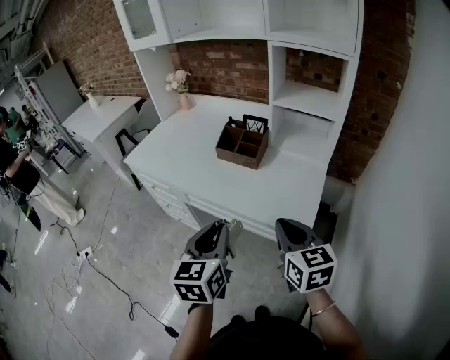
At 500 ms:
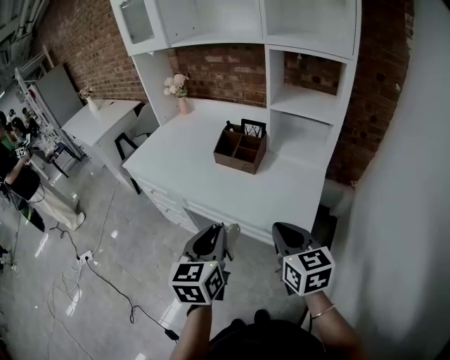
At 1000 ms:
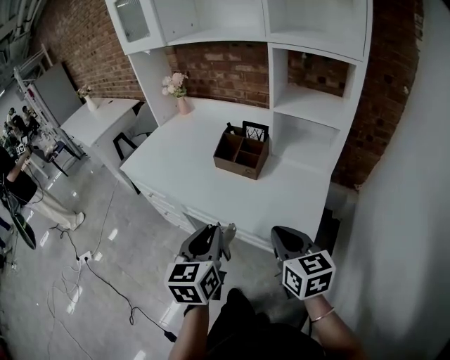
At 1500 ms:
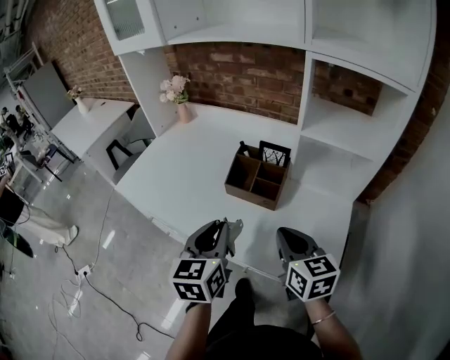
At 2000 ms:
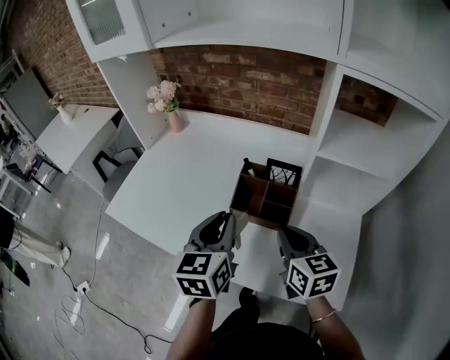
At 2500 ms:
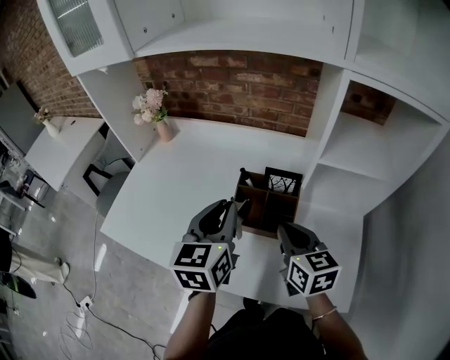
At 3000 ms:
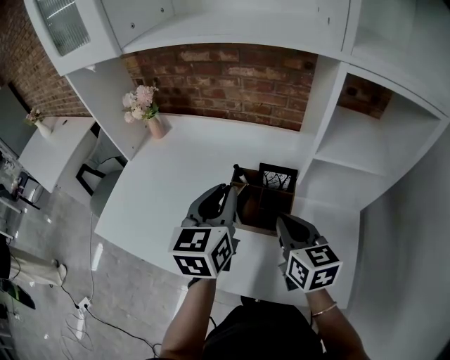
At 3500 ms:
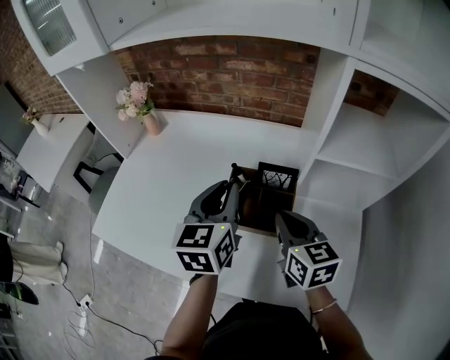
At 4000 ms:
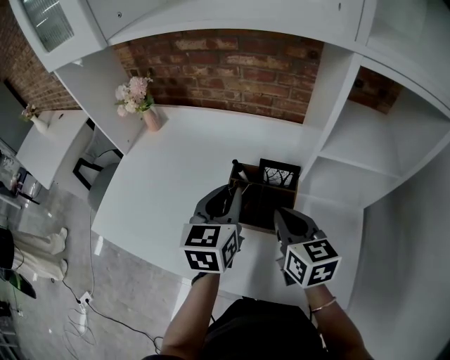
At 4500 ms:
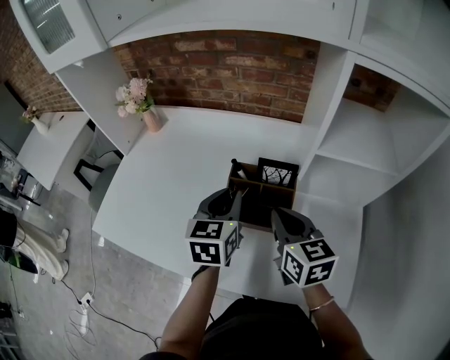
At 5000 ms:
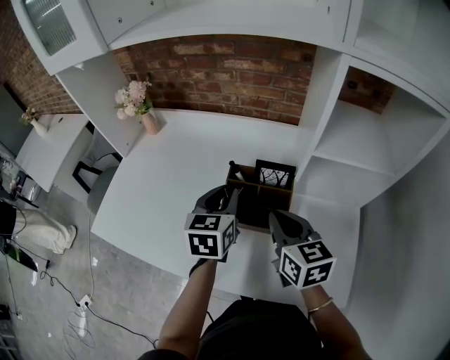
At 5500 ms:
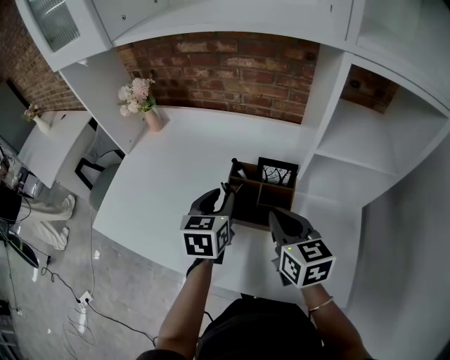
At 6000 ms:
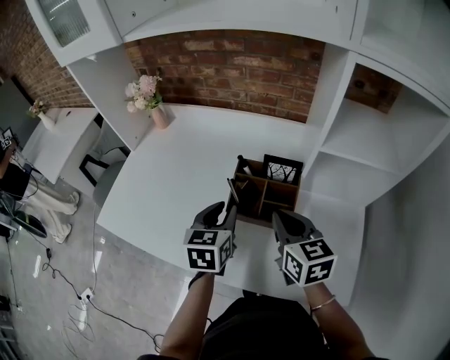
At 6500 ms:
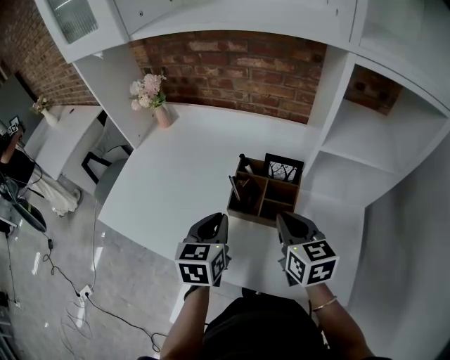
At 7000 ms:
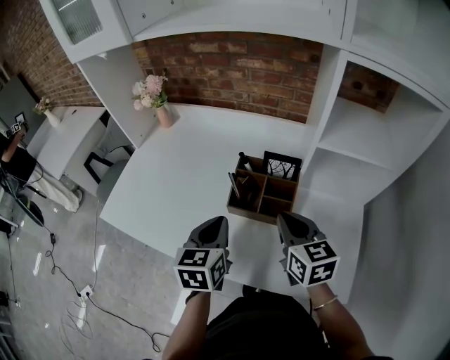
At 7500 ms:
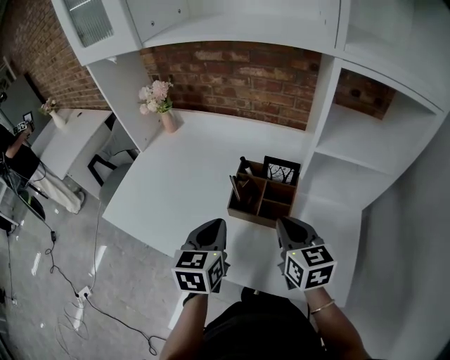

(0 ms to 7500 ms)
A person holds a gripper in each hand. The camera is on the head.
0 ms - 2000 ms: The two grippers go about 35 cm forward.
2000 ms - 4000 ms: The two grippers go roughly 10 cm forward.
4000 ms - 5500 ms: The left gripper is displaced downward by roughly 5 cm.
5500 ms - 7500 ms: The left gripper goes roughly 10 cm backward, and closes up.

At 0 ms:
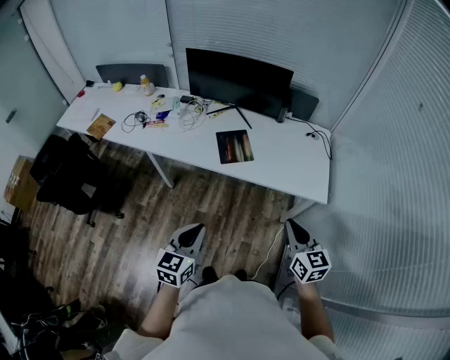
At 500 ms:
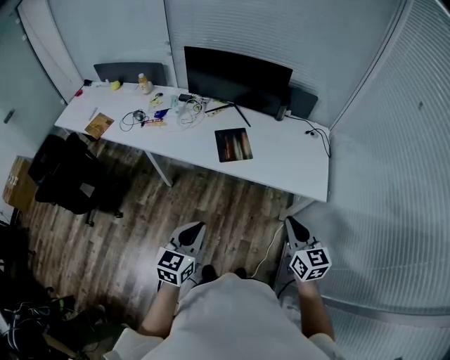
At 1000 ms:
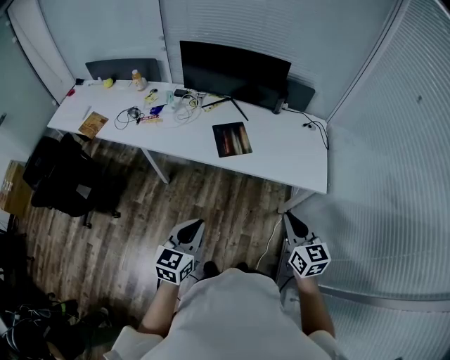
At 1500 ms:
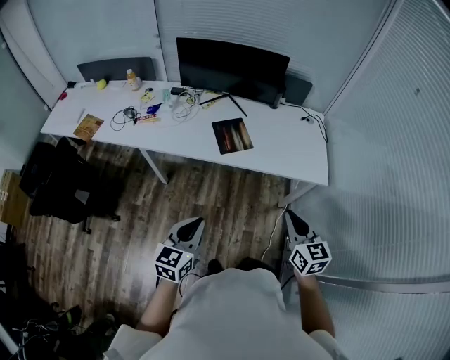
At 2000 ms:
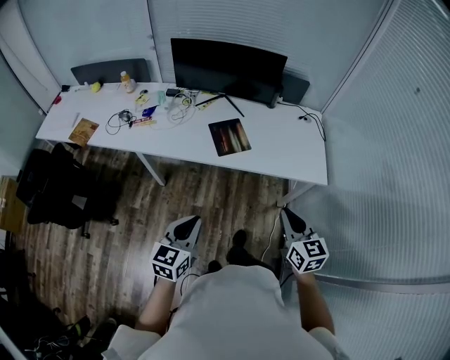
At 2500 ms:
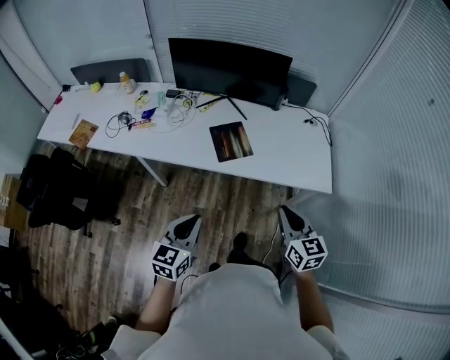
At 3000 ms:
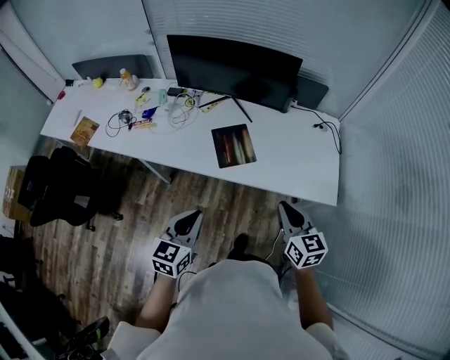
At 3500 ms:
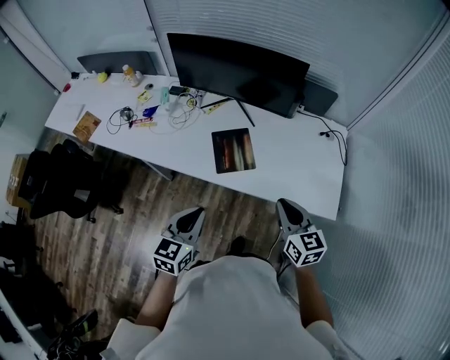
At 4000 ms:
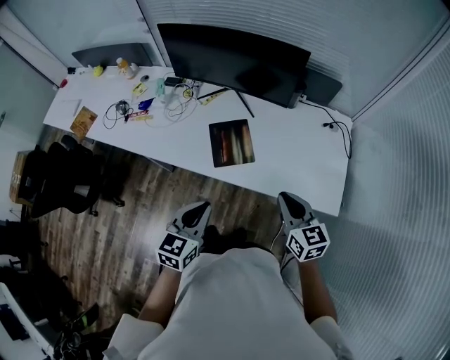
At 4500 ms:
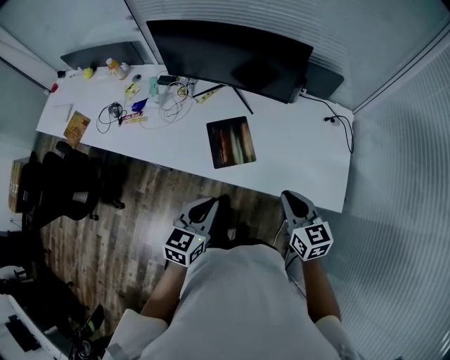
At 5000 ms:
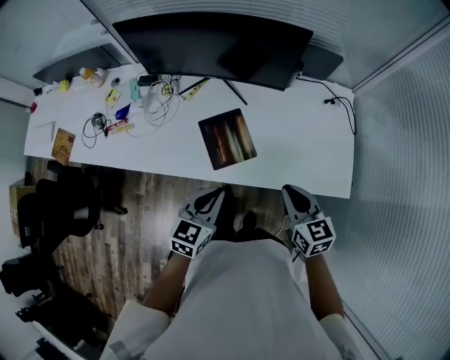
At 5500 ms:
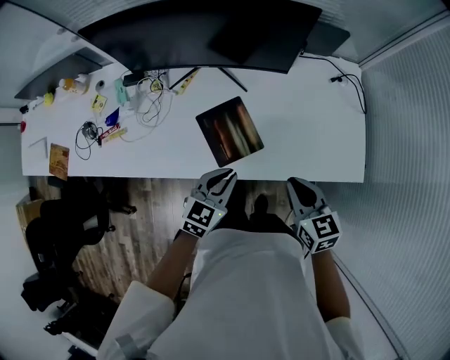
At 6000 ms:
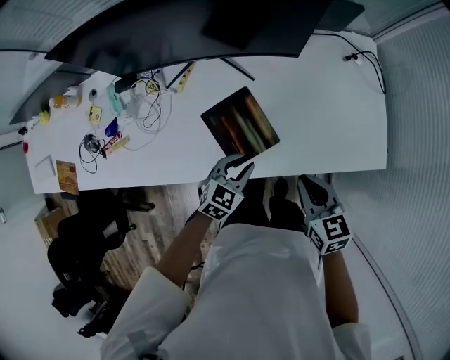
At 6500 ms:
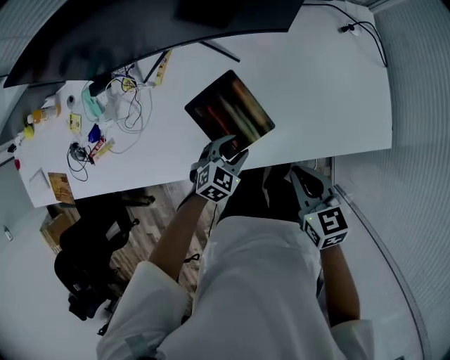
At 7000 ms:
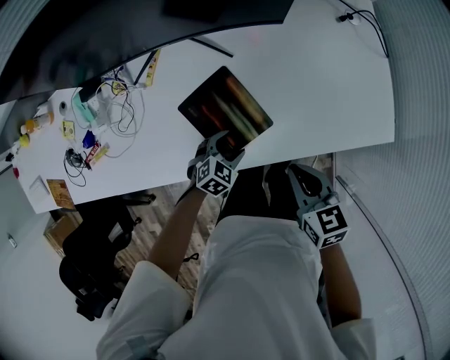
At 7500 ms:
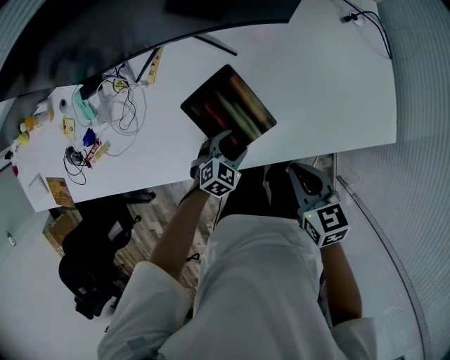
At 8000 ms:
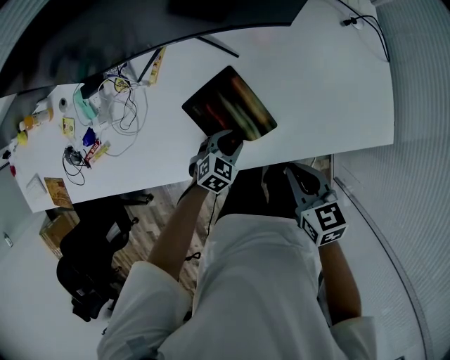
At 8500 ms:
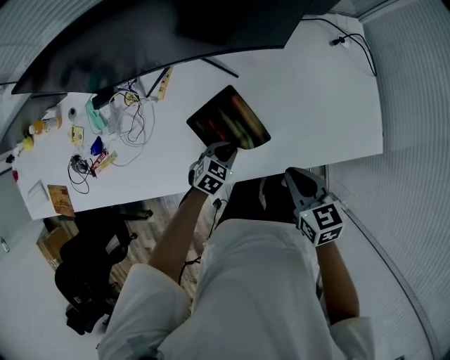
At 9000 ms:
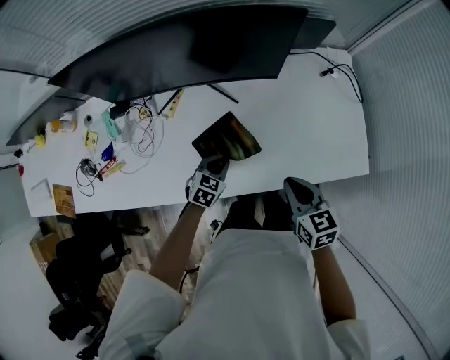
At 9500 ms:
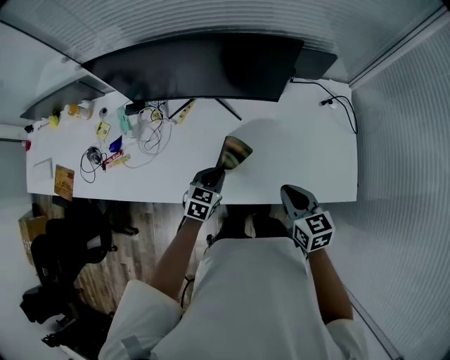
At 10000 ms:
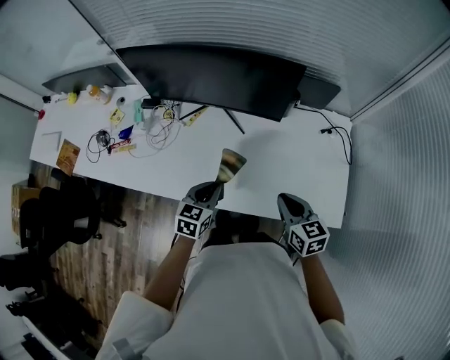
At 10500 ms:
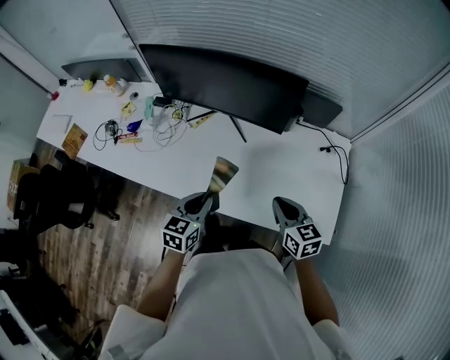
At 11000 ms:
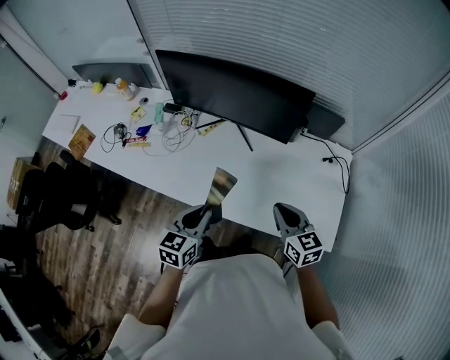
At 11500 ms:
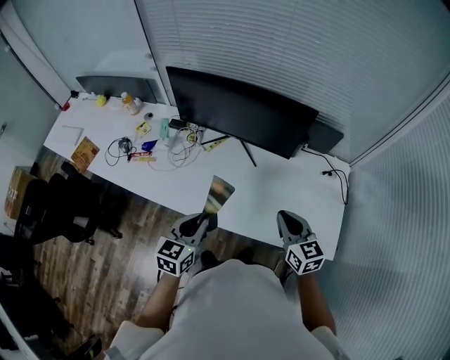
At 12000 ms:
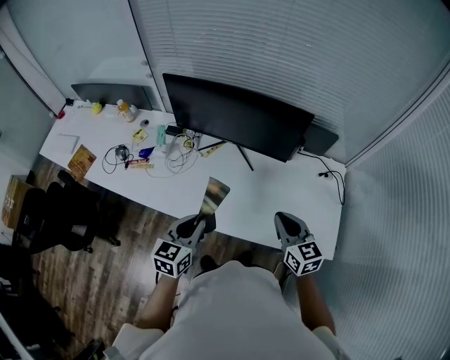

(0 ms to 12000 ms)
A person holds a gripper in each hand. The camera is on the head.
0 ms - 2000 ms: The grippers both shift to the left by approximately 5 cm.
2000 ms - 4000 ms: The right gripper is displaced forward by roughly 25 cm. The left gripper travels forward and to the right by about 25 cm.
4000 ms - 6000 ms: The right gripper moves downward, roughly 10 cm, and changes its angle by approximately 20 degrees; the left gripper goes some 20 cm downward, and changes its angle by about 40 degrees.
6000 ms - 8000 ms: The left gripper travels downward by approximately 15 cm, and opens and closes again; the right gripper goes about 5 cm downward.
8000 ms - 10000 ms: The left gripper shifts roughly 25 cm upward, changes its angle by approximately 50 degrees, and closes up, while the right gripper is displaced upward by roughly 10 cm, and swivels approximately 20 degrees.
10000 ms - 12000 ms: The right gripper goes about 10 cm upward and to the left, while the left gripper moves upward, to the left and backward, approximately 20 cm.

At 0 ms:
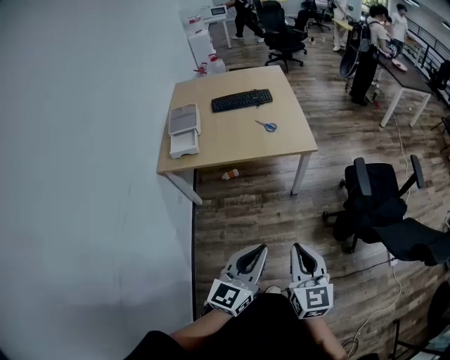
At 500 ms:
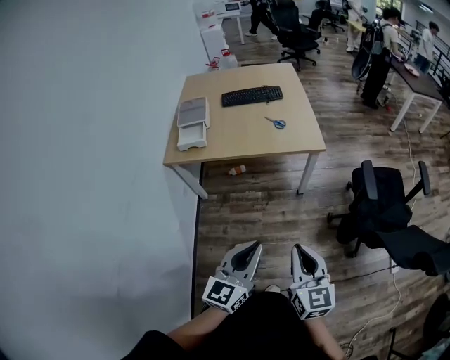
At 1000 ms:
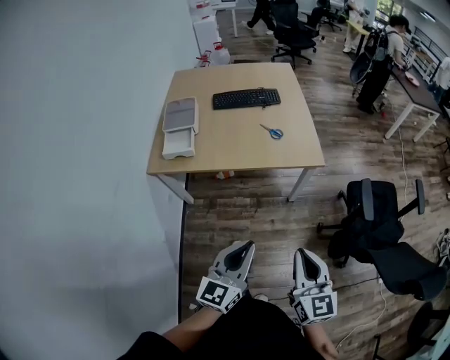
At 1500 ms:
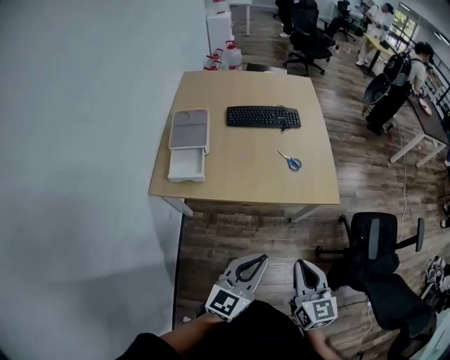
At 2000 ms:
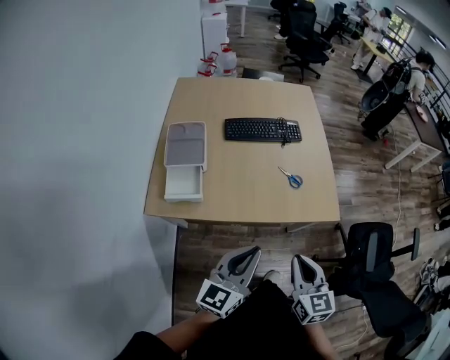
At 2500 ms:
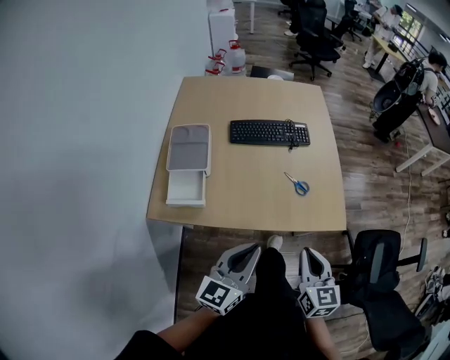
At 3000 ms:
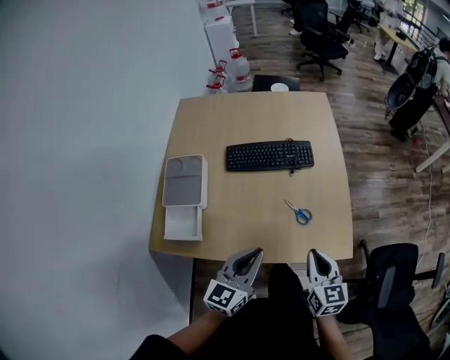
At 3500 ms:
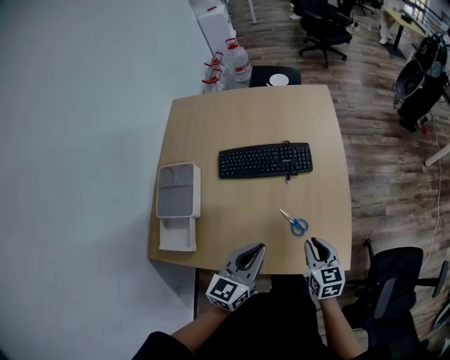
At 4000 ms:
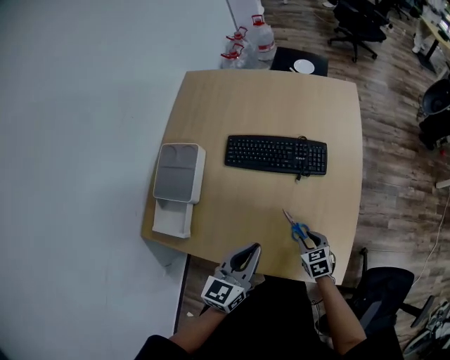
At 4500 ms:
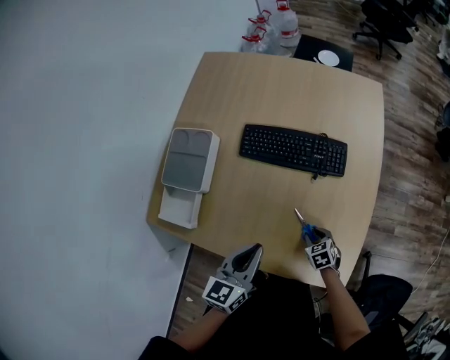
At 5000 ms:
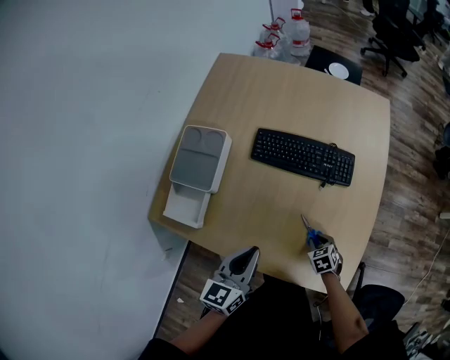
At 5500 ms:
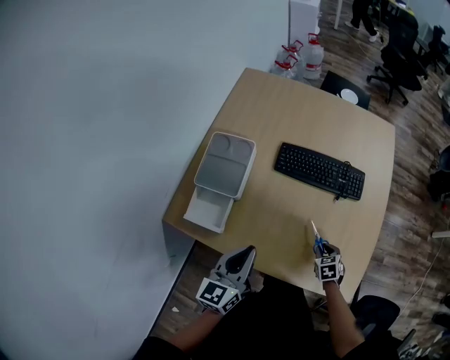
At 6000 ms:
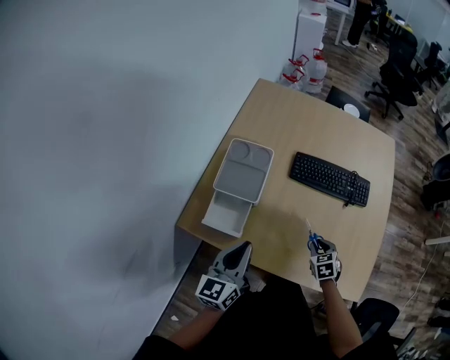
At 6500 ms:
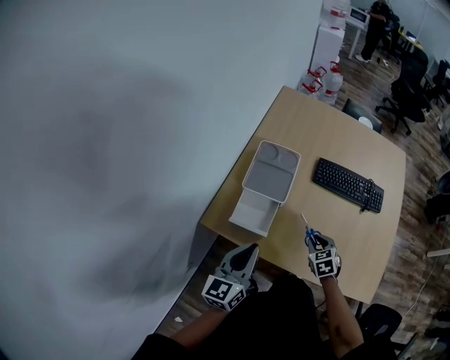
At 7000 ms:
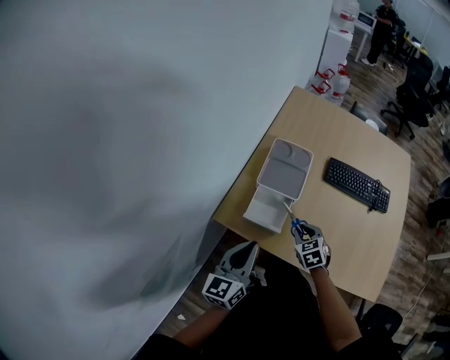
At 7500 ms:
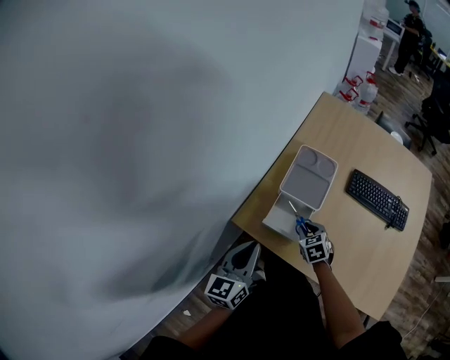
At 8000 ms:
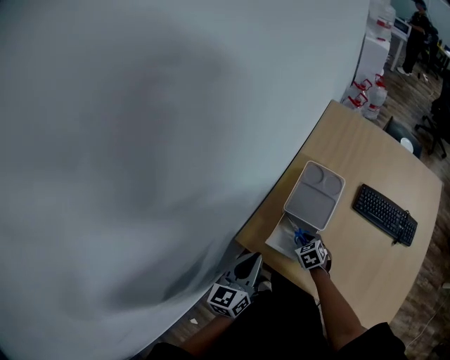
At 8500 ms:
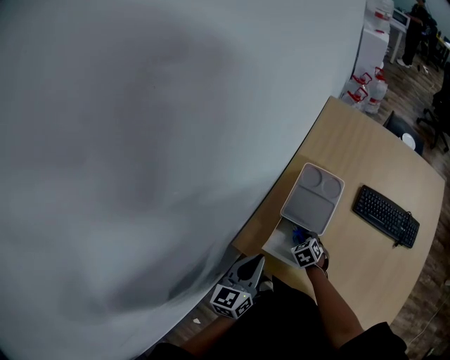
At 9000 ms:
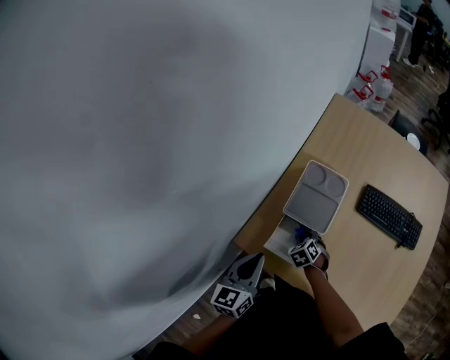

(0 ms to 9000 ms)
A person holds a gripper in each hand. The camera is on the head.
0 ms - 2000 ms: Both grippers travel together forward and to the left, some 40 cm.
2000 ms - 4500 ms: The right gripper changes place by approximately 50 cm, tips its fingers downward by some 40 degrees, and opens; the left gripper changes place by some 35 cm, and changes its angle by some 30 degrees.
4500 ms - 7000 ms: The two grippers go approximately 40 cm to the left. The left gripper rotates about 20 degrees, while the right gripper changes its angle by approximately 20 degrees.
7000 ms - 9000 ms: The right gripper travels forward, downward and to the left by some 15 cm. The left gripper is displaced forward by about 10 cm.
